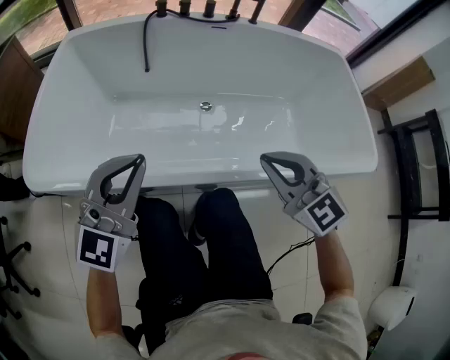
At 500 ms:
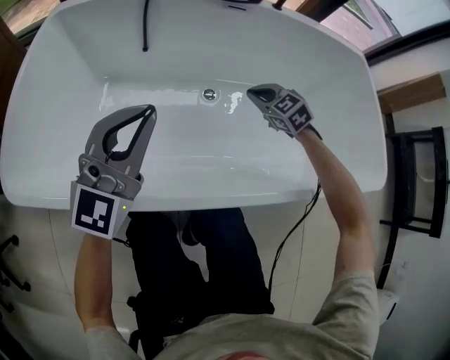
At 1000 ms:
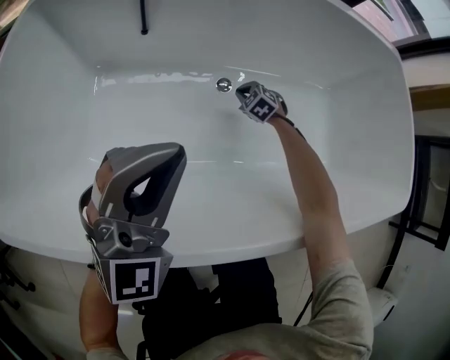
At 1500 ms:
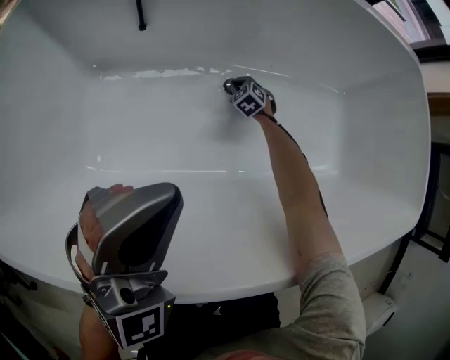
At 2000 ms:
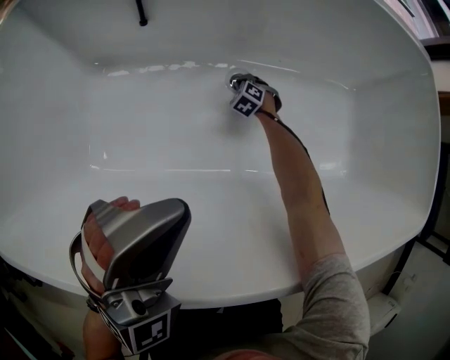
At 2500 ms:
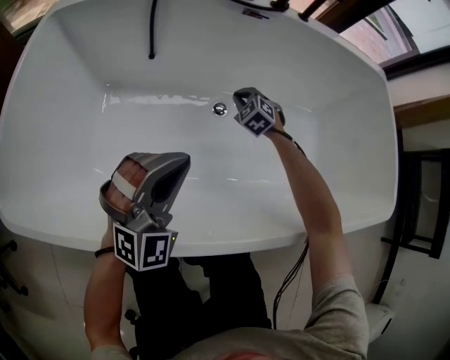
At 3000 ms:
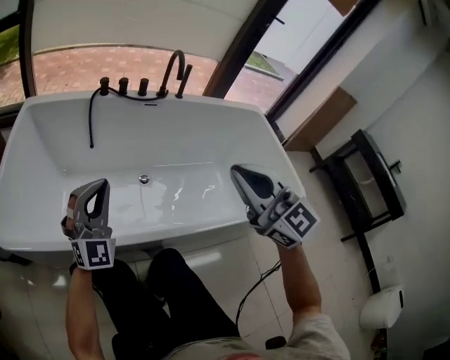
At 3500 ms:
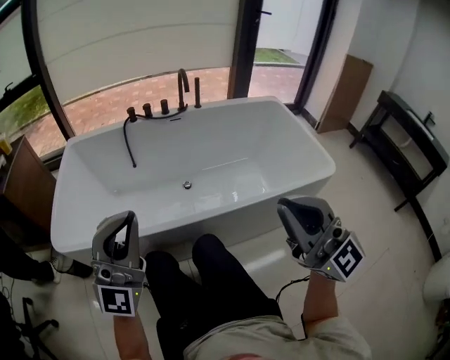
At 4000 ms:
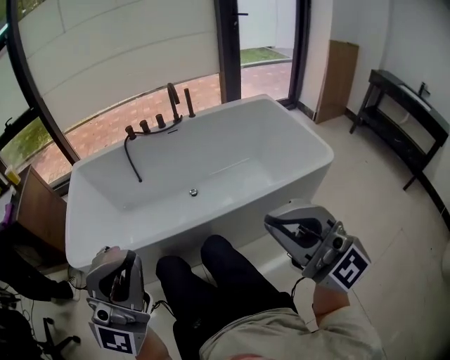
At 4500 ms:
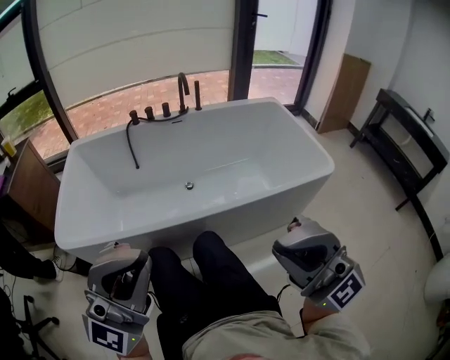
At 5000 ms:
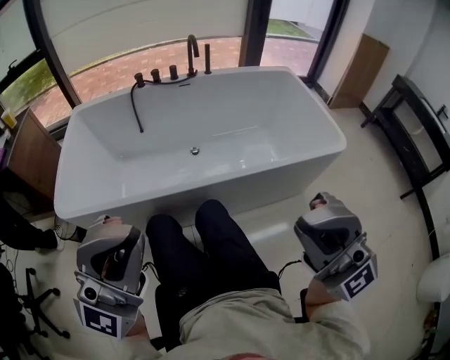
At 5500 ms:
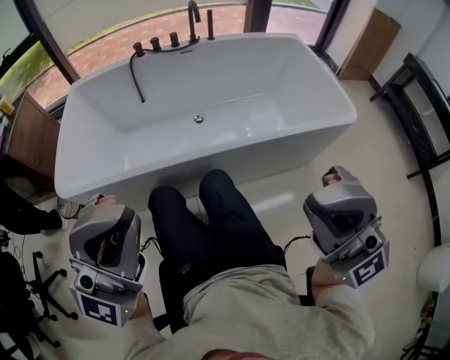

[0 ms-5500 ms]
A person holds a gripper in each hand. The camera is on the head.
0 ms to 2000 ms: The right gripper goes approximately 70 cm downward and forward, and tilts its fingers approximately 40 degrees downward. Meanwhile the left gripper shifts about 25 cm forward and downward, and swivels about 30 degrees.
2000 ms to 3500 ms: The right gripper moves upward and backward, roughly 1 m, and tilts its fingers roughly 80 degrees upward, while the left gripper is displaced upward and backward by roughly 40 cm, and tips its fingers upward by roughly 40 degrees.
3500 ms to 5500 ms: The left gripper goes some 15 cm backward and upward. The right gripper is displaced backward by some 10 cm, and changes its angle by roughly 20 degrees.

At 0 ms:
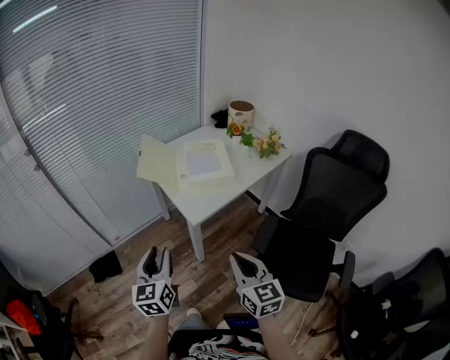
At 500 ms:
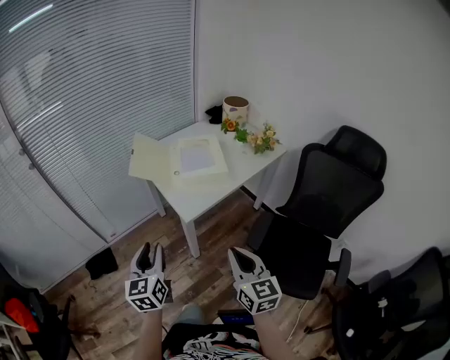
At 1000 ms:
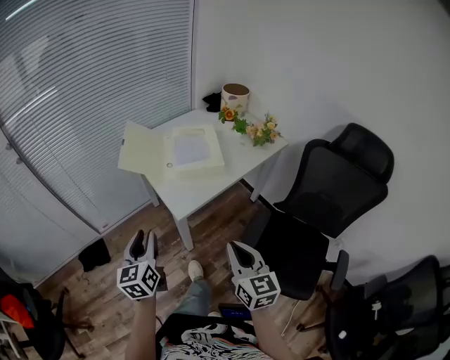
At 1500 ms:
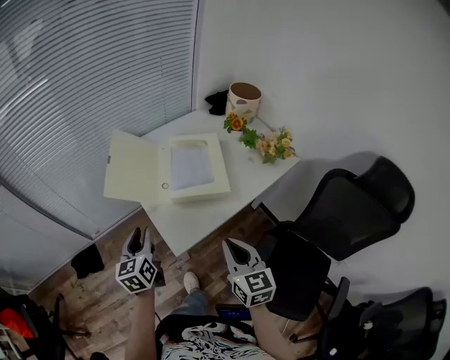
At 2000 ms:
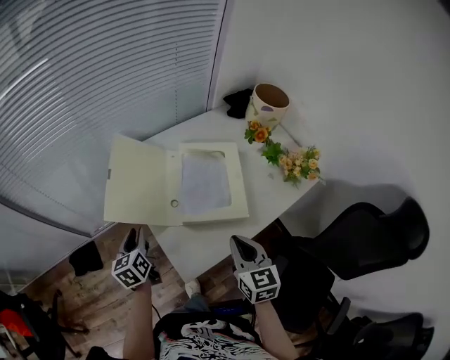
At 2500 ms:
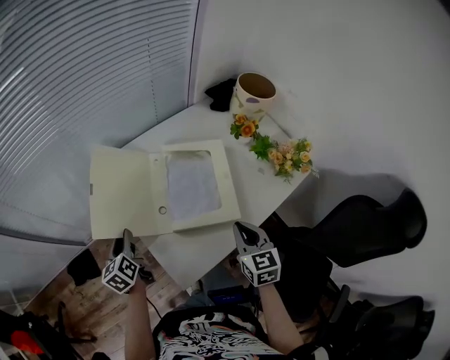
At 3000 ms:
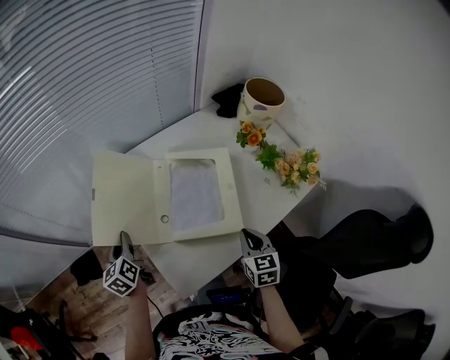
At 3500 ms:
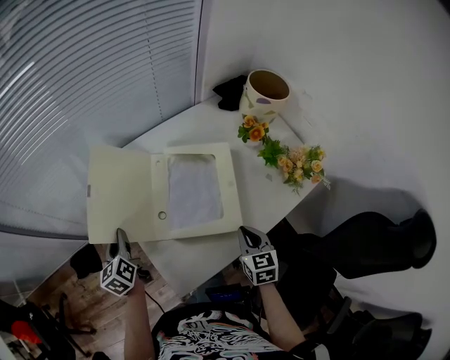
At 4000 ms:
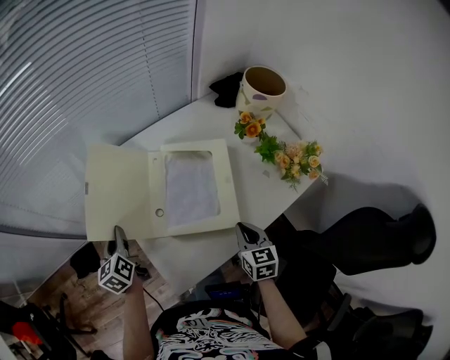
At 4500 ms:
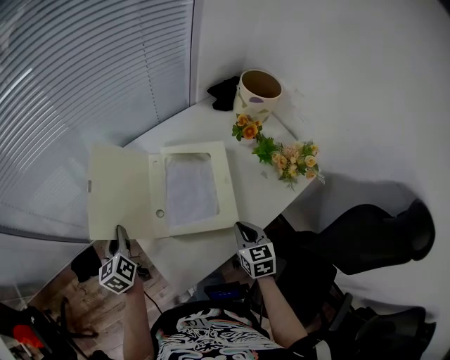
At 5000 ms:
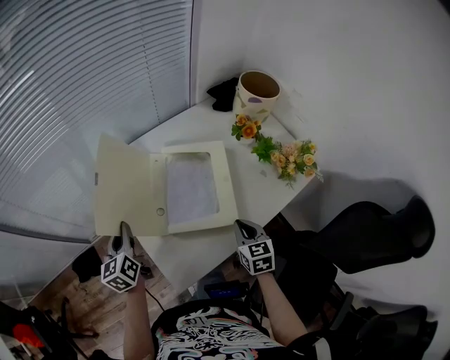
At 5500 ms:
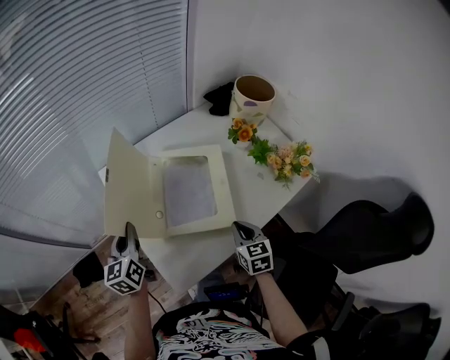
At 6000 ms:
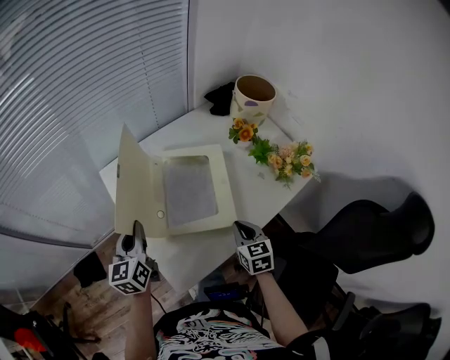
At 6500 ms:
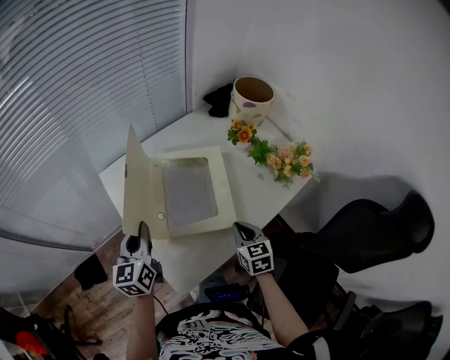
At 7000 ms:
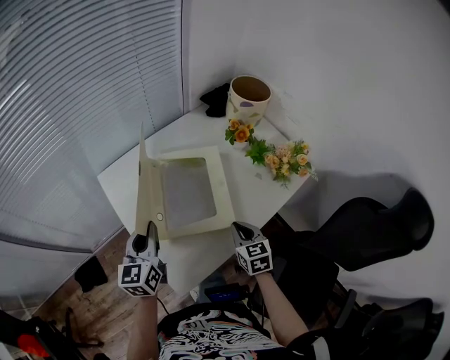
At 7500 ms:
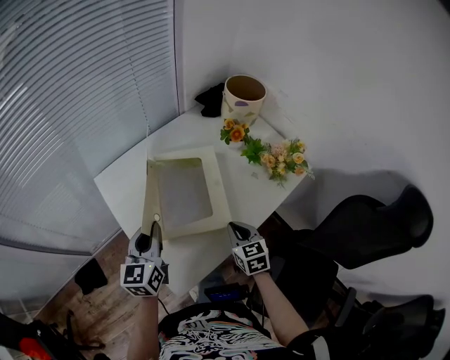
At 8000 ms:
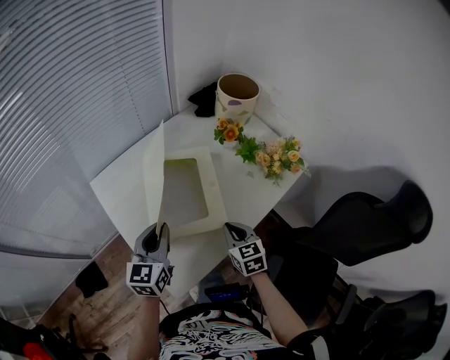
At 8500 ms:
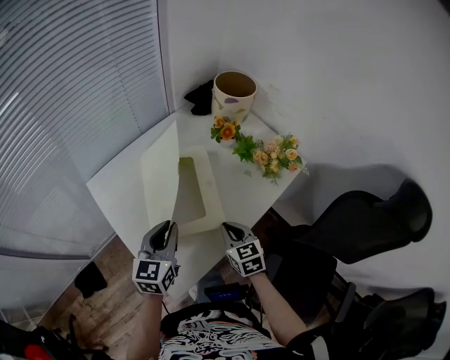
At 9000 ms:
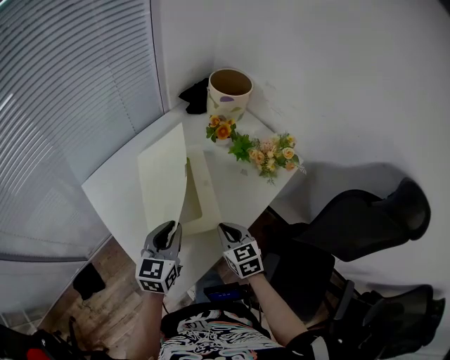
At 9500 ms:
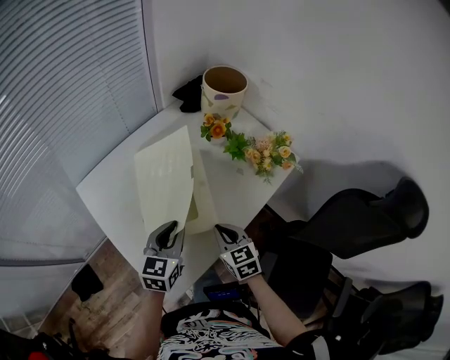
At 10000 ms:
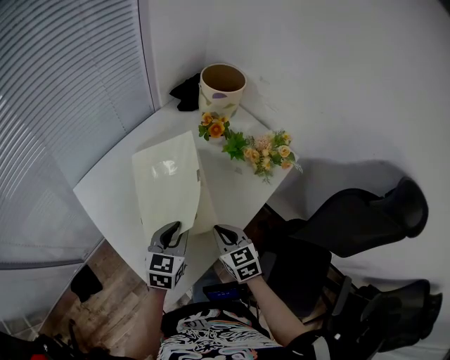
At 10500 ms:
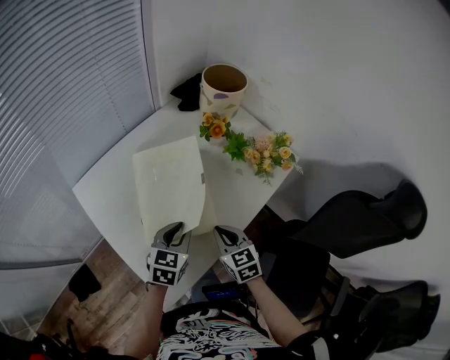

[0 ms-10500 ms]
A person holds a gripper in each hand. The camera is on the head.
0 ms to 2000 ms: The left gripper is displaced forward and downward by roughly 40 cm, and changes its angle by about 30 degrees. The right gripper moves forward, some 35 cm.
2000 ms to 4000 ms: The left gripper is displaced forward by approximately 5 cm, while the right gripper moves downward, to the right and forward, about 15 cm.
4000 ms to 6500 ms: The left gripper travels to the right and upward by roughly 15 cm, and changes its angle by some 30 degrees.
6500 ms to 8500 ms: The left gripper goes roughly 15 cm to the right, and turns by roughly 20 degrees.
8500 ms to 10500 ms: The left gripper goes roughly 10 cm downward and to the right, and turns by about 20 degrees.

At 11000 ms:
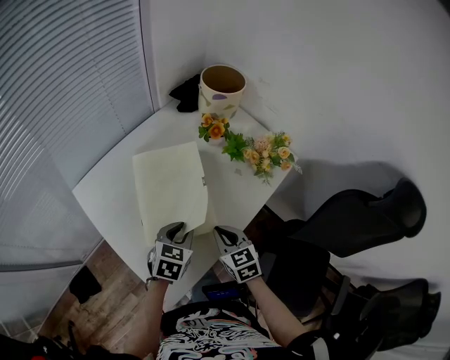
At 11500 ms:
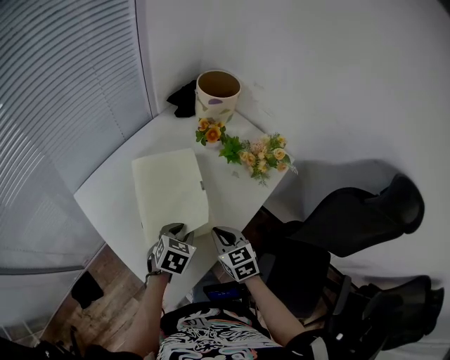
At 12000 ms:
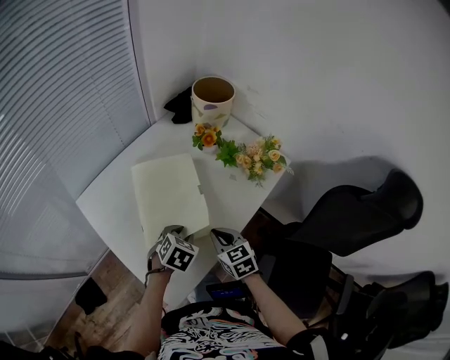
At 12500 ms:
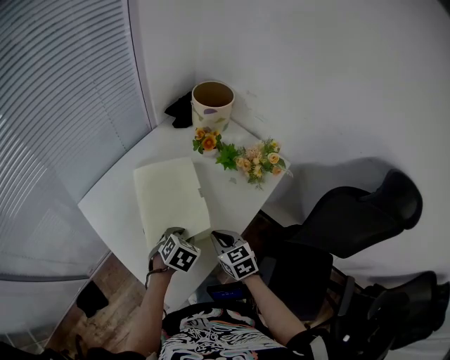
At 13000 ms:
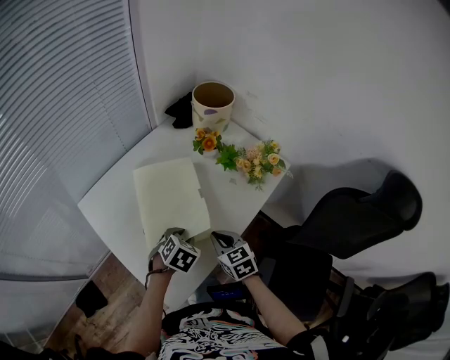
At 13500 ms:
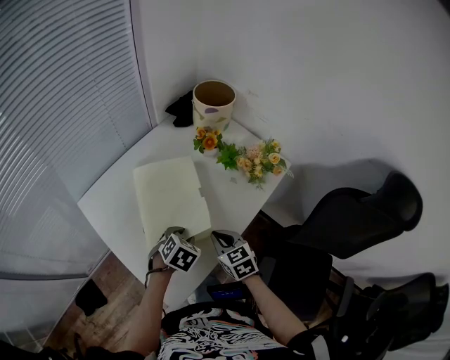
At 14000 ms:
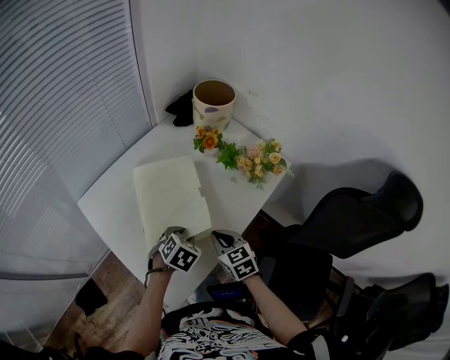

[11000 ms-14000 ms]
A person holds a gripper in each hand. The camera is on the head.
11000 ms to 12500 ms: The left gripper swivels roughly 20 degrees.
12500 ms to 14000 ms: Both grippers stay about where they are.

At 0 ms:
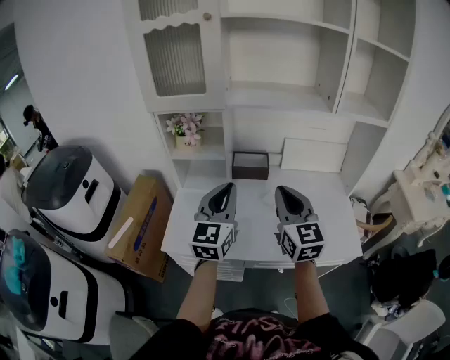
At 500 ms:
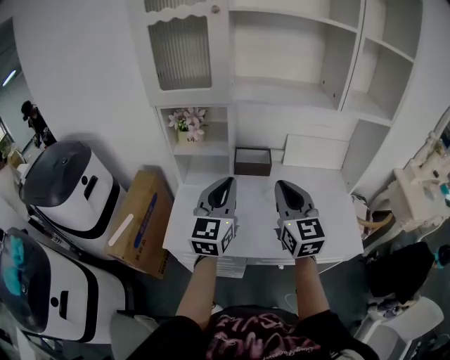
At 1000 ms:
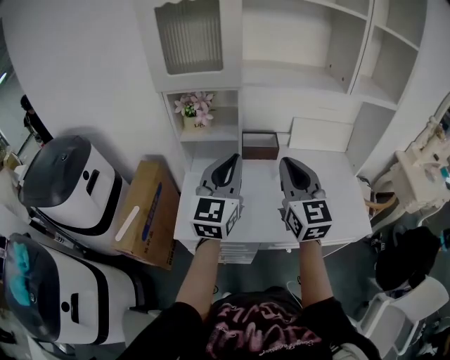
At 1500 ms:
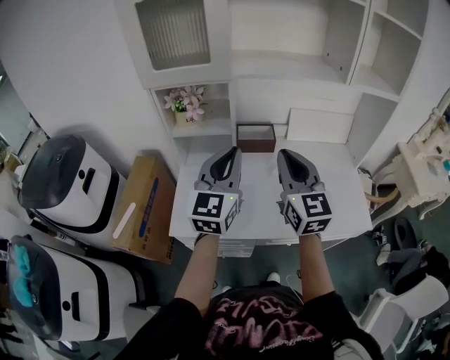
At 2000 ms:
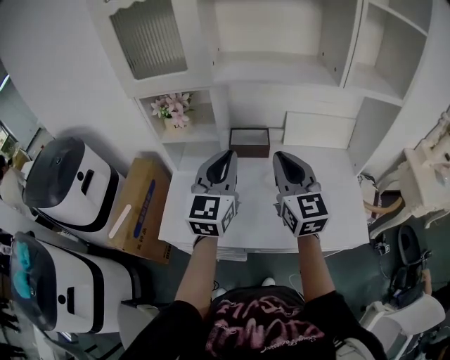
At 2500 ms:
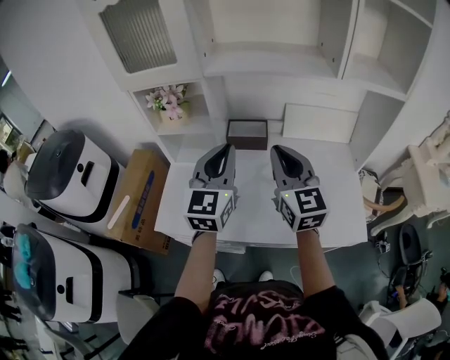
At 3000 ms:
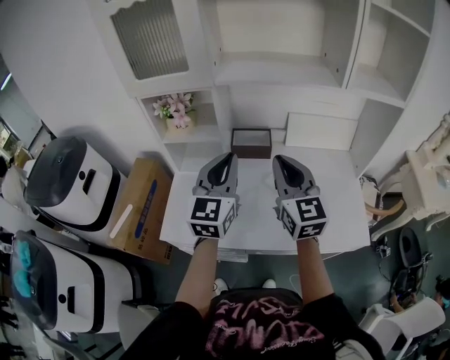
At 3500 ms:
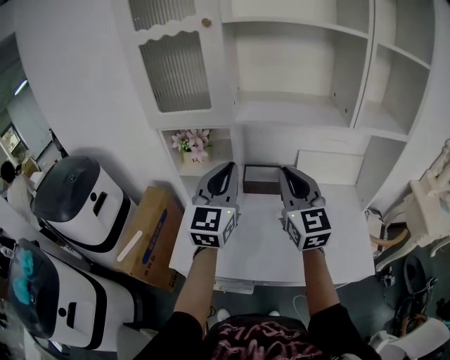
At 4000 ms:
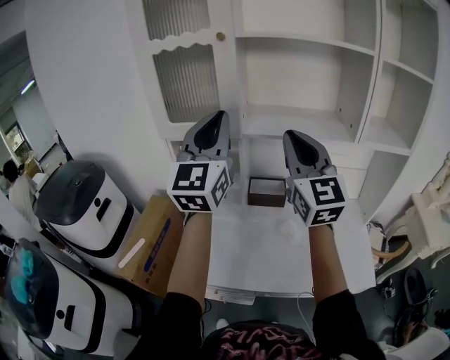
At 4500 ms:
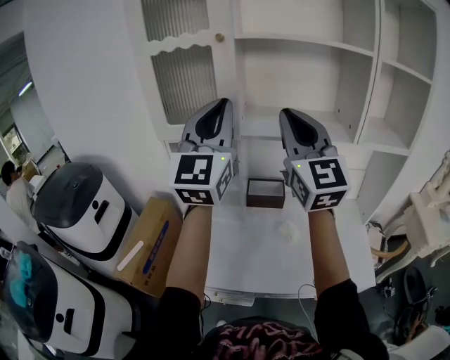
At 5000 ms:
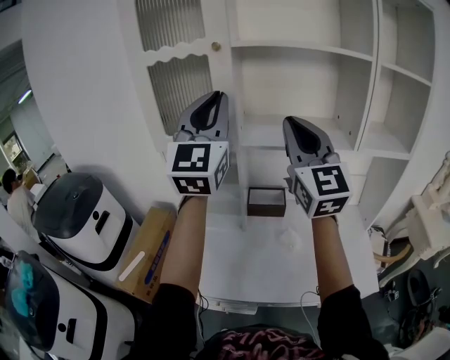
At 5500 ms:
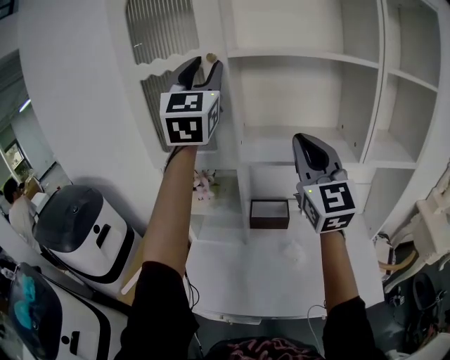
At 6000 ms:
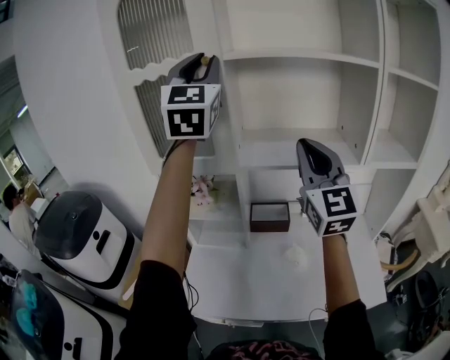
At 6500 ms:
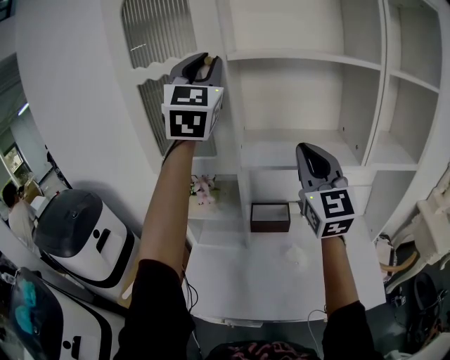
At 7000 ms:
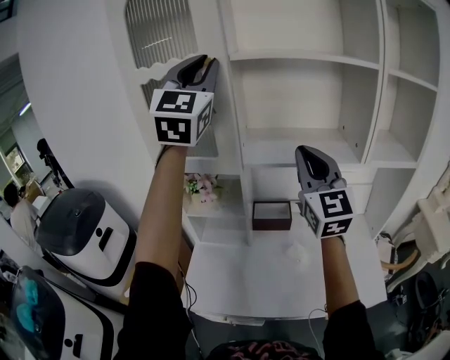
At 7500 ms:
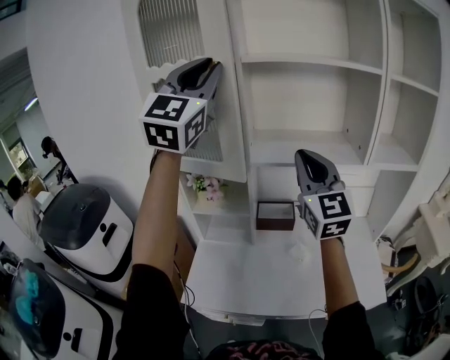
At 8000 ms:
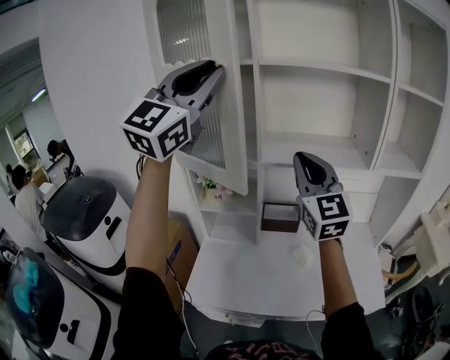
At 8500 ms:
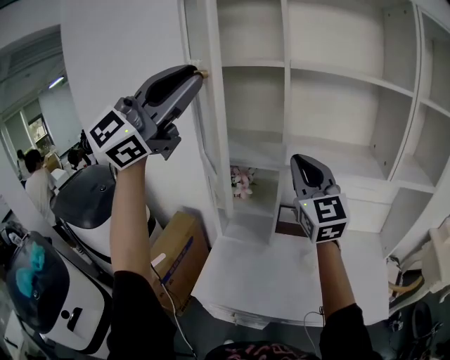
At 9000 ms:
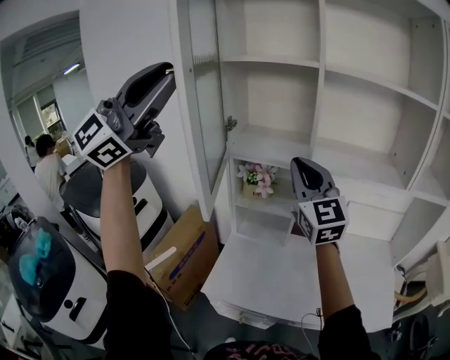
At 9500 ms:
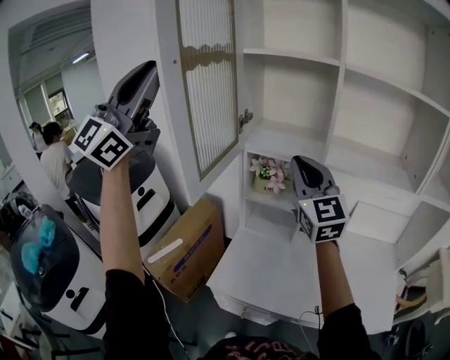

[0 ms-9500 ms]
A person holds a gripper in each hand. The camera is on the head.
0 ms to 2000 ms: Both grippers move forward, about 5 cm. The left gripper moves roughly 5 cm to the left and comes back.
2000 ms to 4000 ms: Both grippers travel together upward, some 20 cm. The left gripper turns by about 20 degrees.
4000 ms to 5500 ms: The left gripper shifts about 20 cm upward and forward, and opens its fingers; the right gripper is displaced forward by some 5 cm.
5500 ms to 7500 ms: The left gripper heads backward, covering about 5 cm.
7500 ms to 9500 ms: The left gripper goes about 35 cm to the left and backward, while the right gripper moves to the left, roughly 20 cm.
